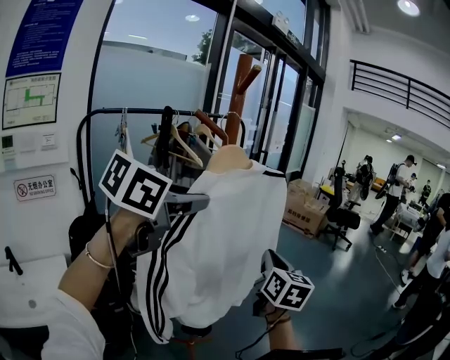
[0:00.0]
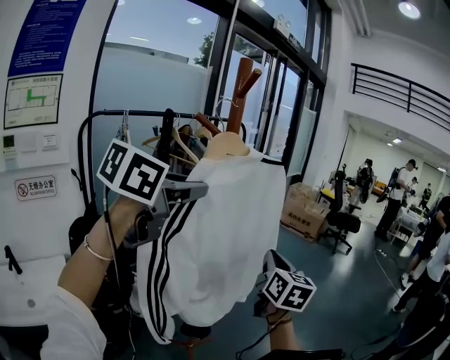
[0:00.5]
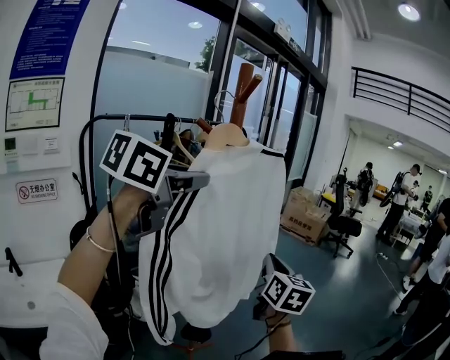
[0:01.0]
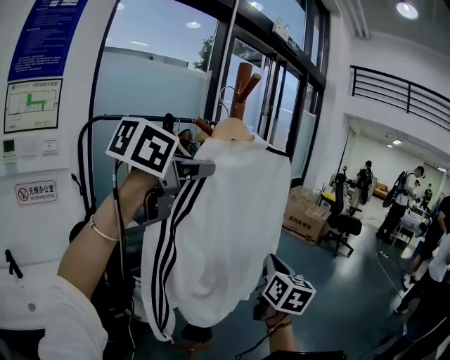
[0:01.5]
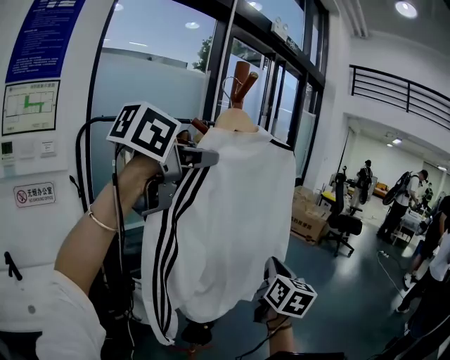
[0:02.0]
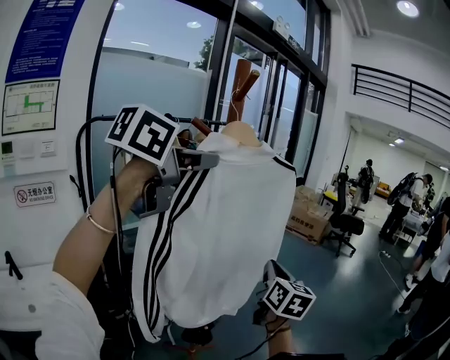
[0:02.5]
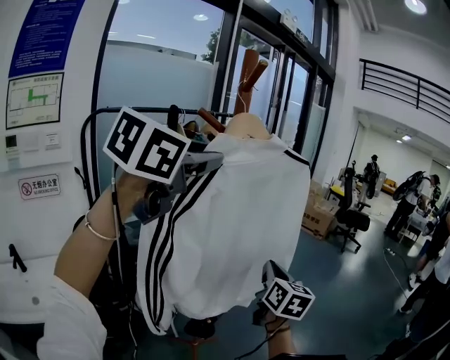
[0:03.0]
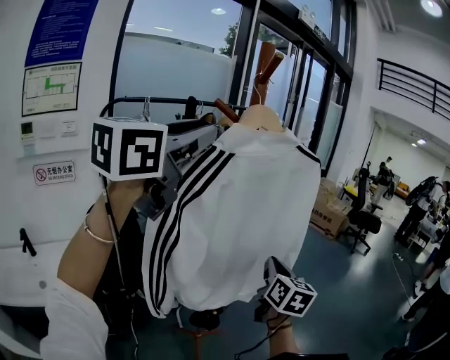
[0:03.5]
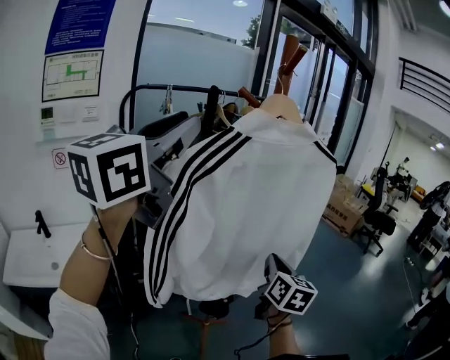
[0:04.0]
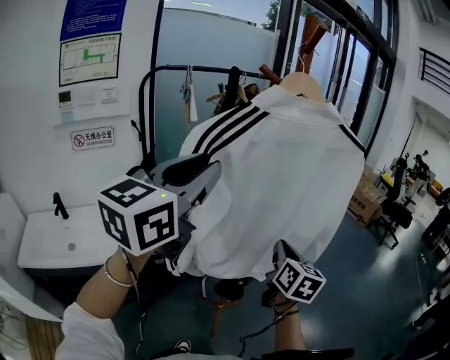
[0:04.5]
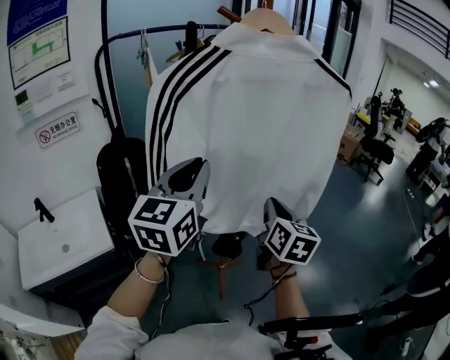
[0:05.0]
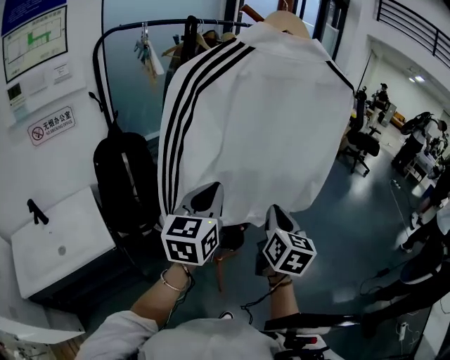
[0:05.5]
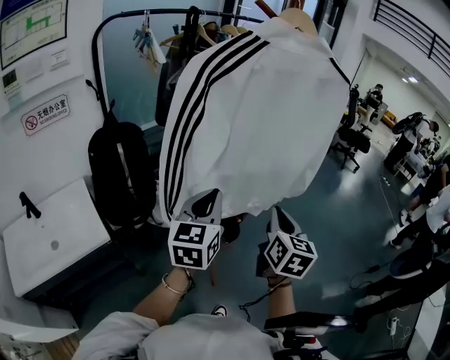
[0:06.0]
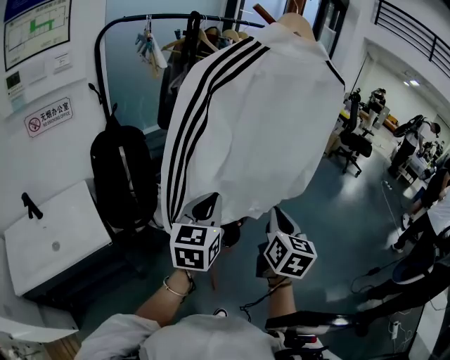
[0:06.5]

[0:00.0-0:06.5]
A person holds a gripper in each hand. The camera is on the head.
0:00.0 to 0:02.0: The left gripper travels upward by approximately 10 cm.
0:02.0 to 0:04.5: The right gripper heads to the left and downward, covering approximately 10 cm. The left gripper goes roughly 15 cm backward, downward and to the left, and changes its angle by approximately 40 degrees.
0:04.5 to 0:06.5: The left gripper shifts some 25 cm downward, and closes, while the right gripper shifts about 10 cm backward.

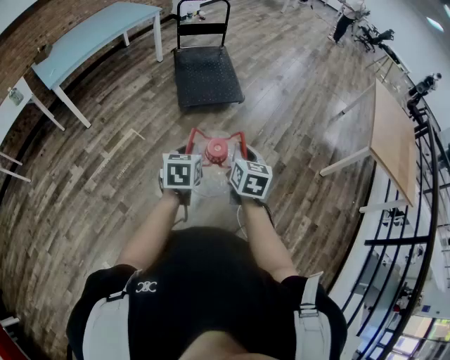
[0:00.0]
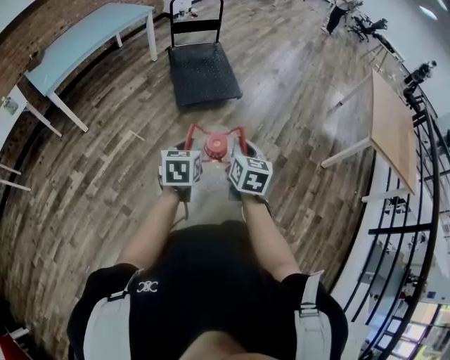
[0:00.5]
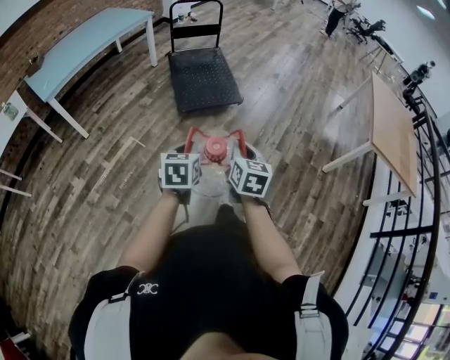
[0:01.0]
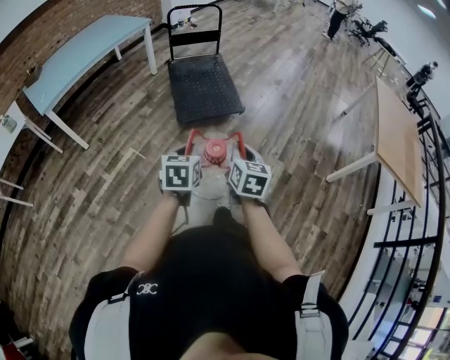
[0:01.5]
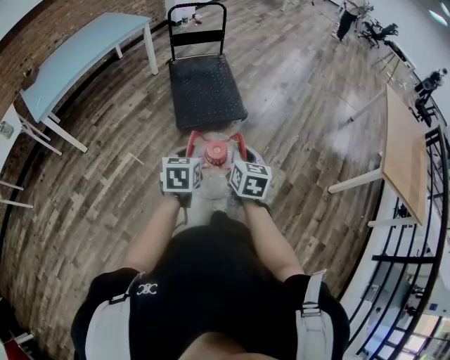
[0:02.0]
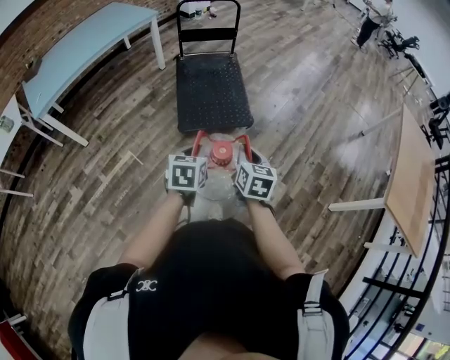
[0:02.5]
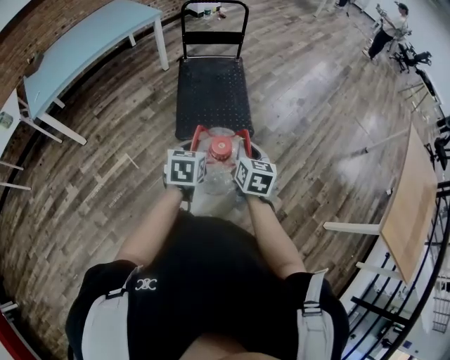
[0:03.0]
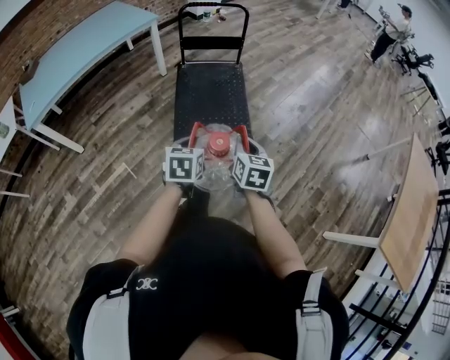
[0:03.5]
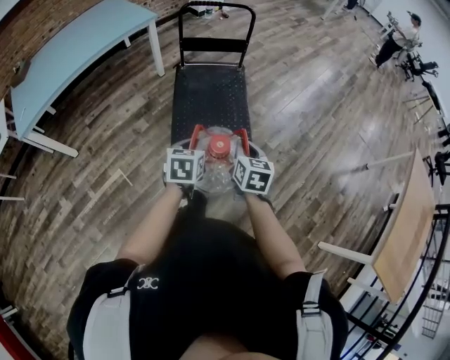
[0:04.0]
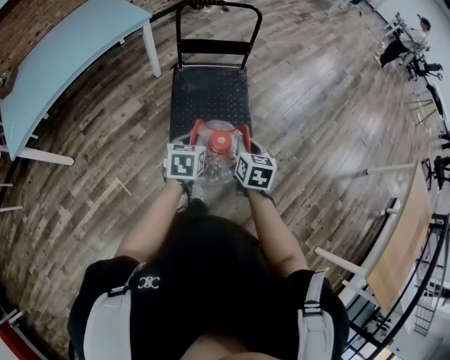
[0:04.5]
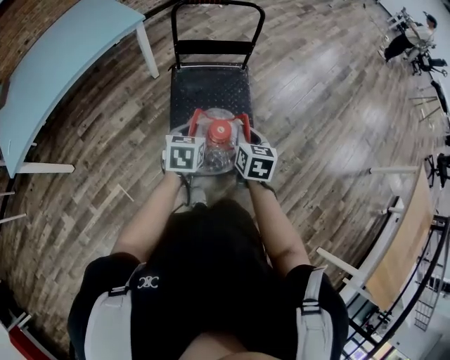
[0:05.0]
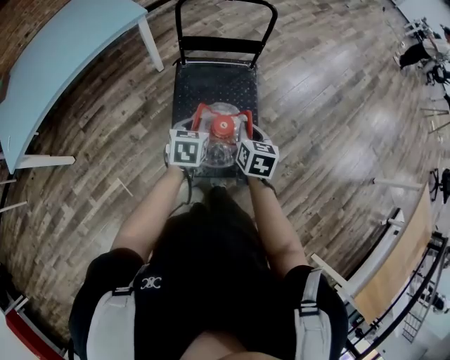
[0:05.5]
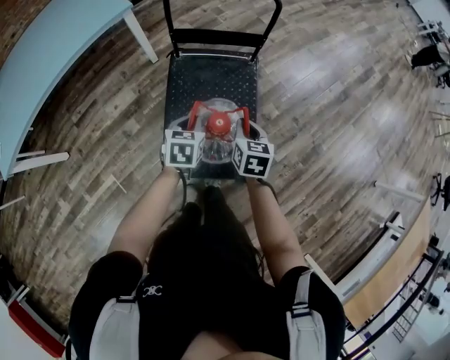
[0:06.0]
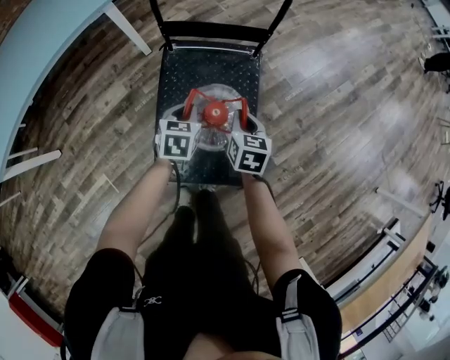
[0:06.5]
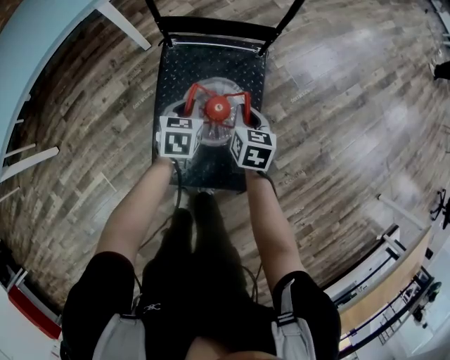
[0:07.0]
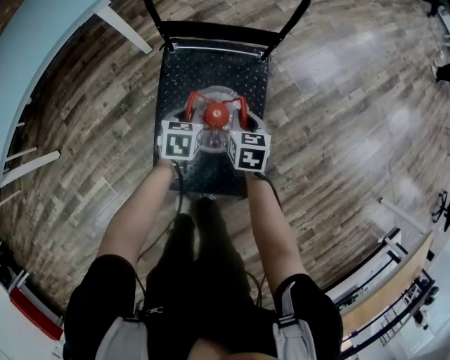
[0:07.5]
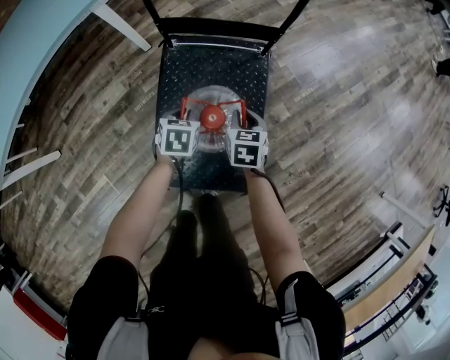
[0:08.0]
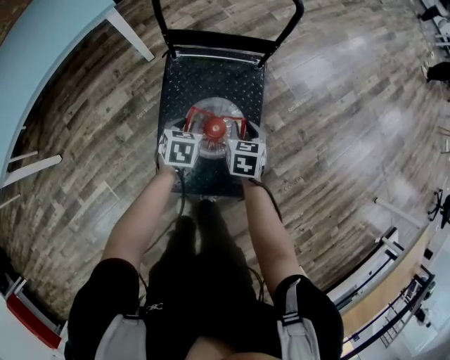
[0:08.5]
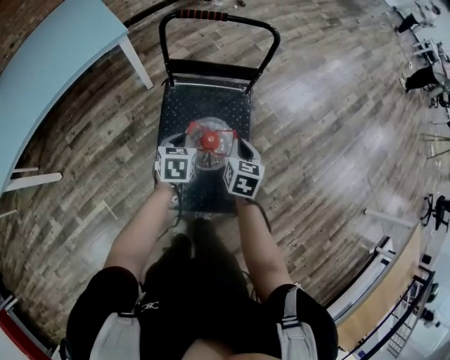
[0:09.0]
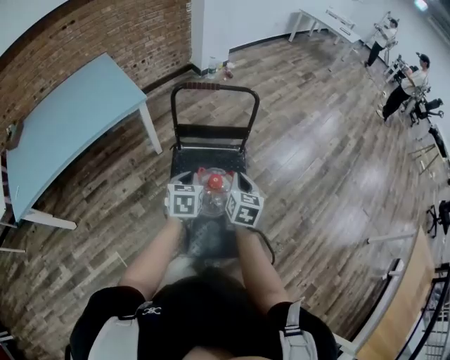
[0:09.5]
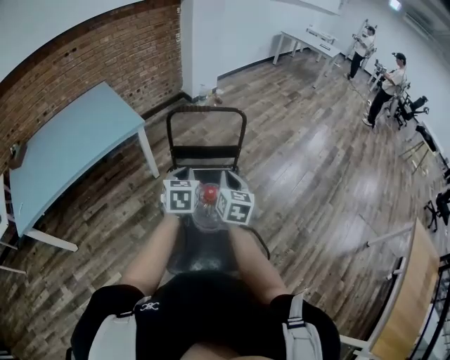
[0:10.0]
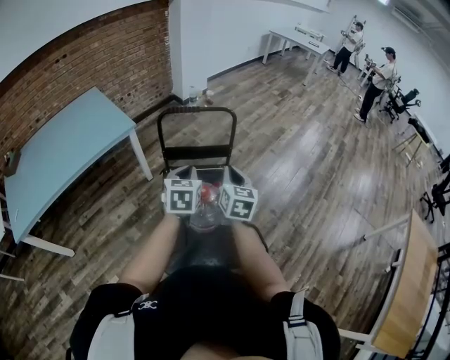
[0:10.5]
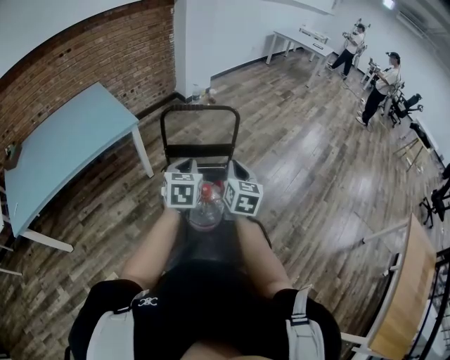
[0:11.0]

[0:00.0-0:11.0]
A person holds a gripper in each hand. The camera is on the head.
0:00.0 to 0:02.0: The two grippers go roughly 20 cm forward.
0:02.0 to 0:03.5: Both grippers travel together forward, some 30 cm.
0:03.5 to 0:05.5: The two grippers go about 40 cm forward.
0:05.5 to 0:07.5: The right gripper travels forward and downward by some 30 cm. Meanwhile the left gripper heads downward and forward, covering roughly 30 cm.
0:07.5 to 0:09.0: Both grippers travel together upward and backward, some 15 cm. The right gripper opens and closes again.
0:09.0 to 0:11.0: The grippers both shift upward by about 25 cm. The left gripper turns by roughly 30 degrees; the right gripper rotates some 30 degrees.

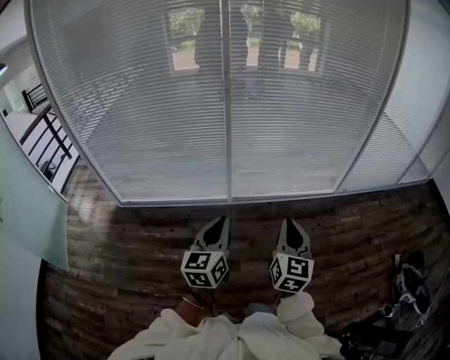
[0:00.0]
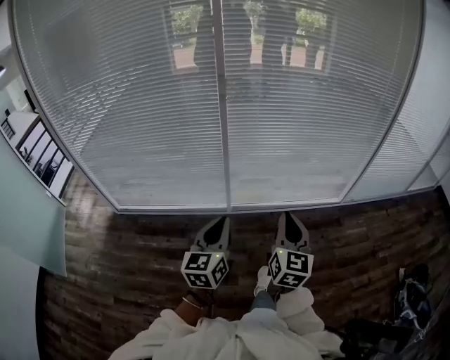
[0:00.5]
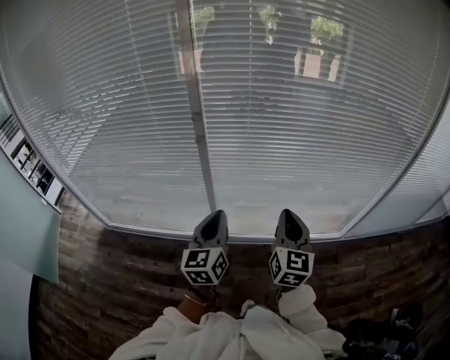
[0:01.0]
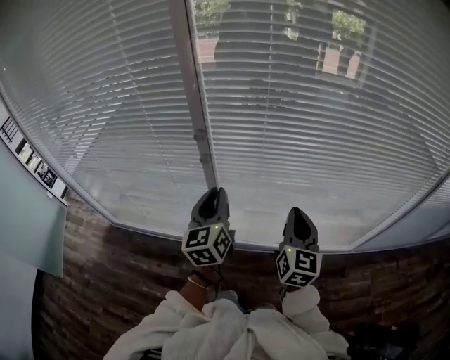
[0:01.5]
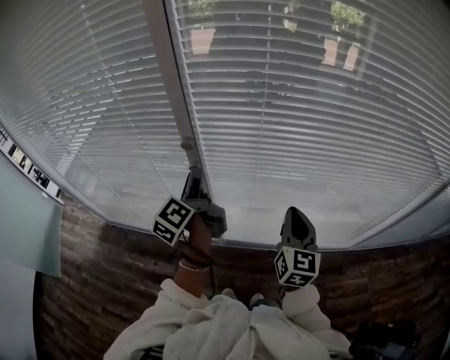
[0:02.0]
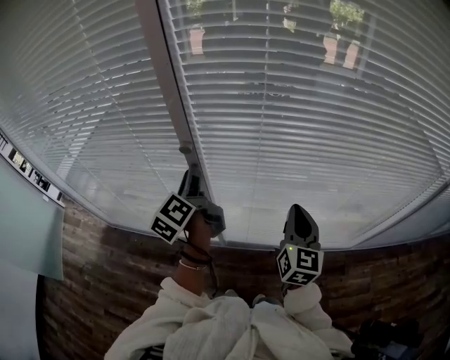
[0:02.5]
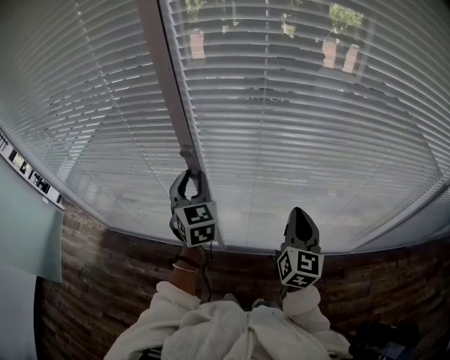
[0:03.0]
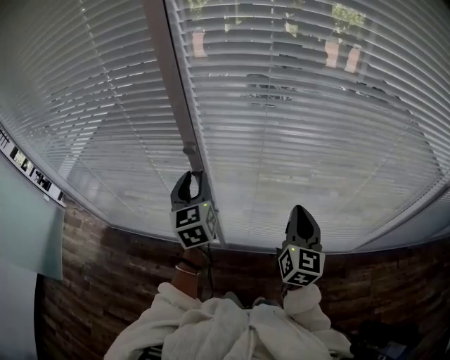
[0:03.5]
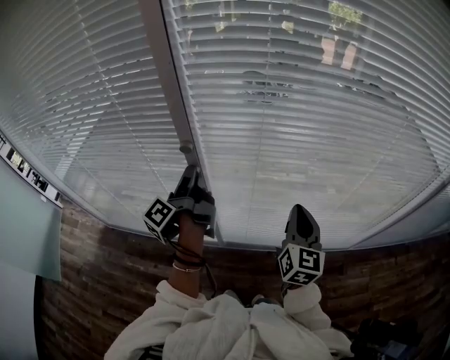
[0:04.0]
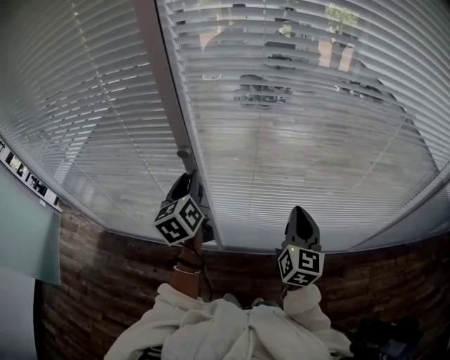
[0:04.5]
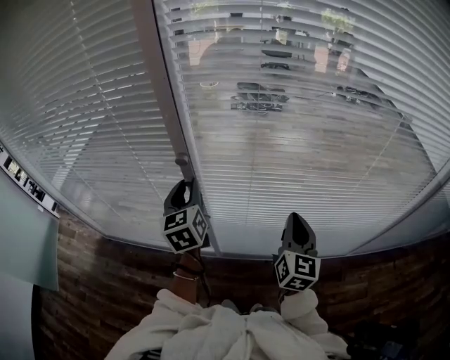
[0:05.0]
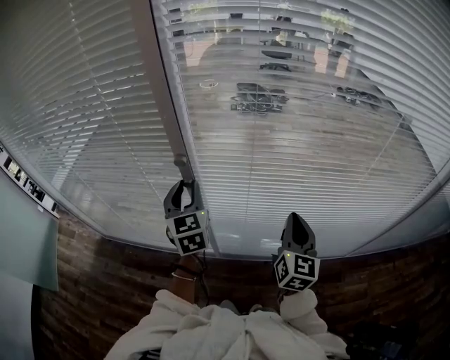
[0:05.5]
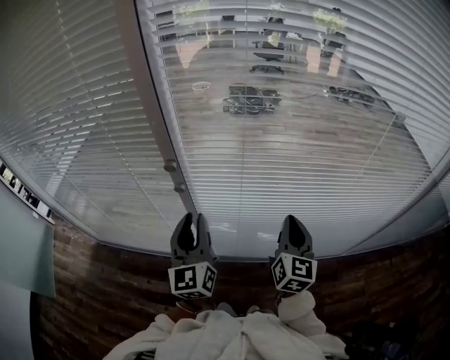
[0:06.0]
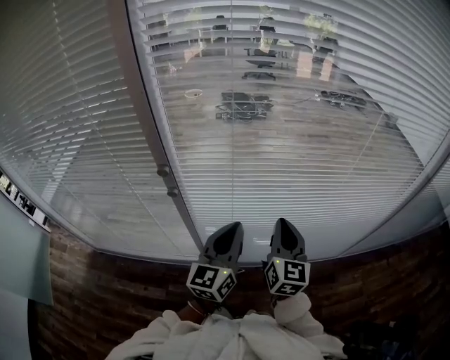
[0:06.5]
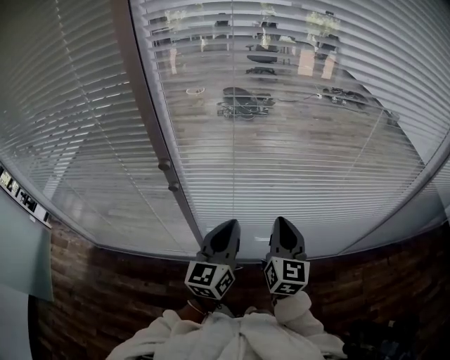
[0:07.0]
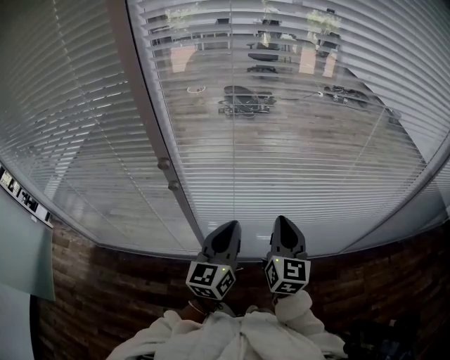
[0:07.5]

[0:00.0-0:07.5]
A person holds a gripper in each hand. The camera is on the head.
0:00.0 to 0:02.0: Both grippers are carried forward, roughly 80 cm. The left gripper rolls counterclockwise, seen from behind, by about 50 degrees, and opens.
0:02.0 to 0:04.0: The left gripper swivels approximately 30 degrees.
0:04.0 to 0:05.5: The left gripper rotates around the line of its fingers by some 90 degrees, clockwise from behind.
0:05.5 to 0:07.5: The left gripper is displaced to the right and backward by some 20 cm, changes its angle by some 40 degrees, and closes.

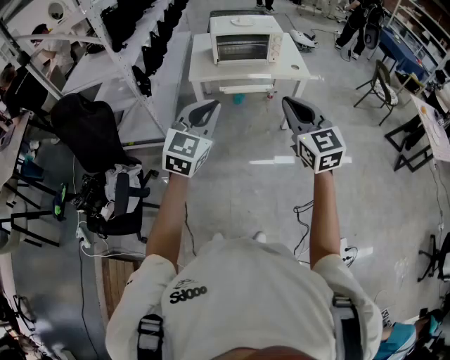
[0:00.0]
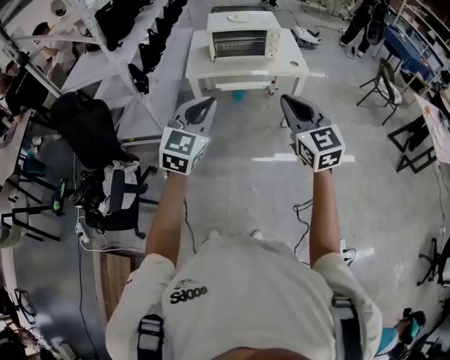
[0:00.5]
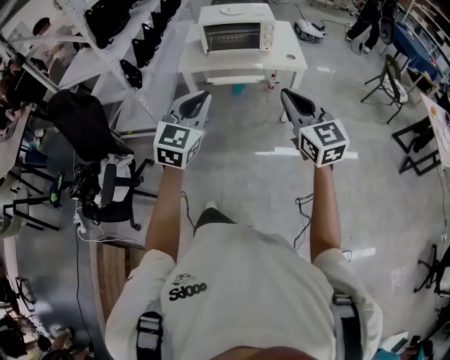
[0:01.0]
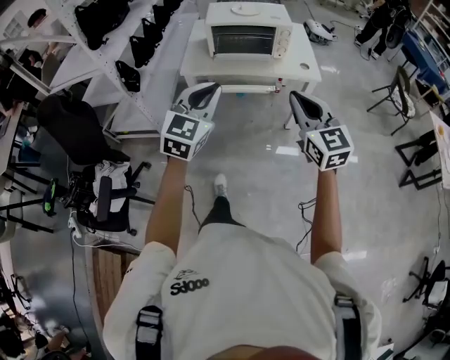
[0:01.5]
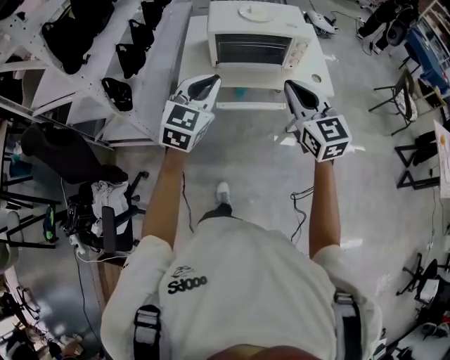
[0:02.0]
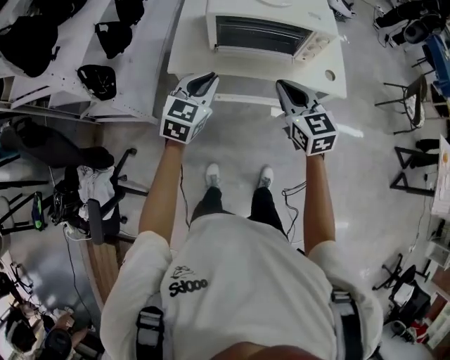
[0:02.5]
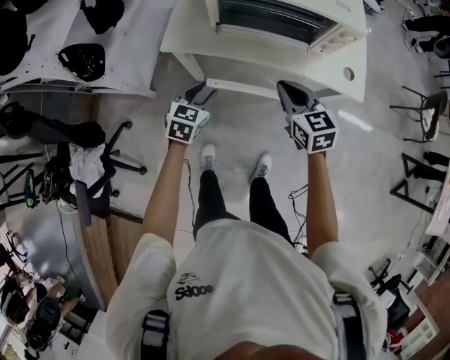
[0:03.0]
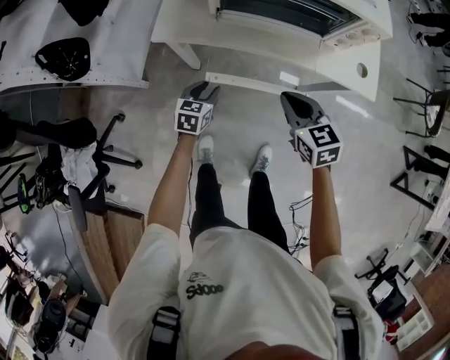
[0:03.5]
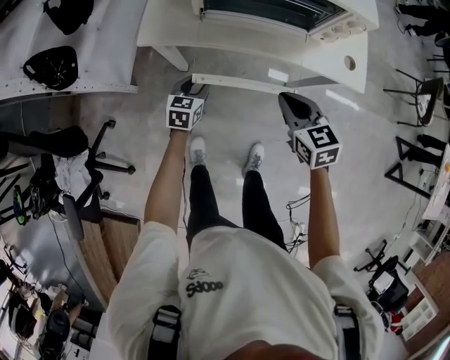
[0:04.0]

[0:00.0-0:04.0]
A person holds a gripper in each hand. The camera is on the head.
0:00.0 to 0:02.0: The grippers both shift forward by some 40 cm.
0:02.0 to 0:04.0: The right gripper travels downward and forward by approximately 35 cm, and tips its fingers downward by about 30 degrees. The left gripper moves downward, about 40 cm, changes its angle by some 40 degrees, and opens its fingers.
